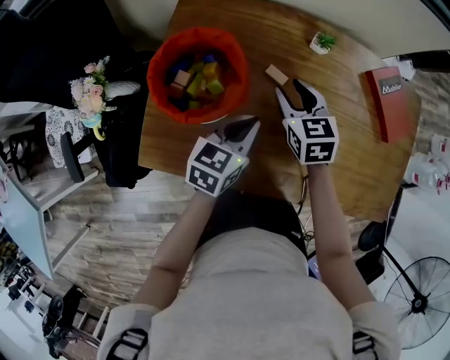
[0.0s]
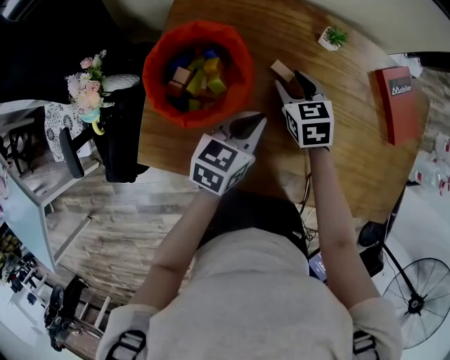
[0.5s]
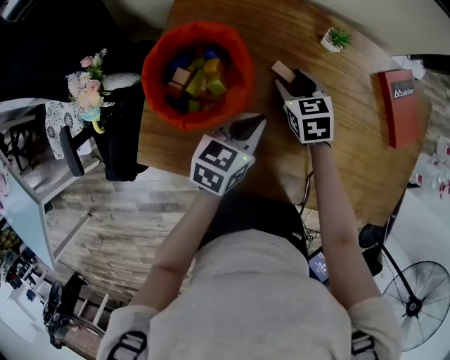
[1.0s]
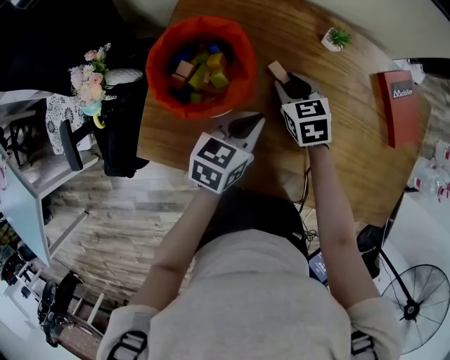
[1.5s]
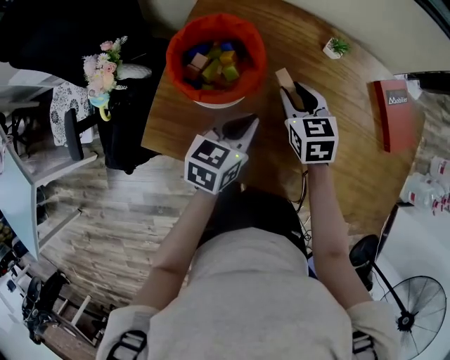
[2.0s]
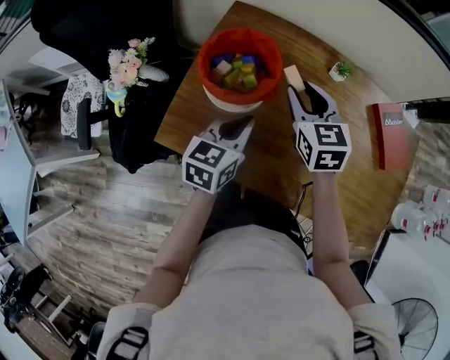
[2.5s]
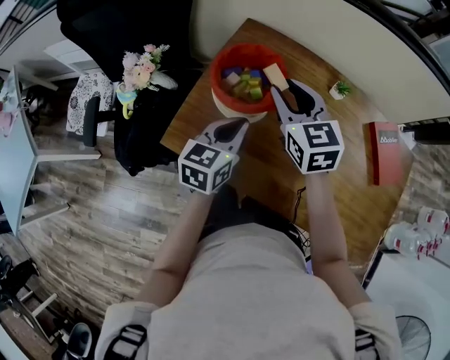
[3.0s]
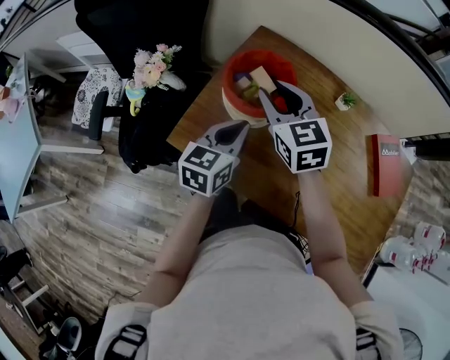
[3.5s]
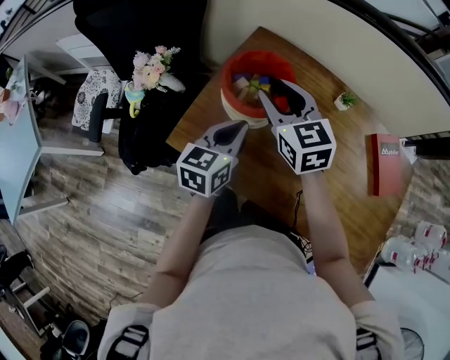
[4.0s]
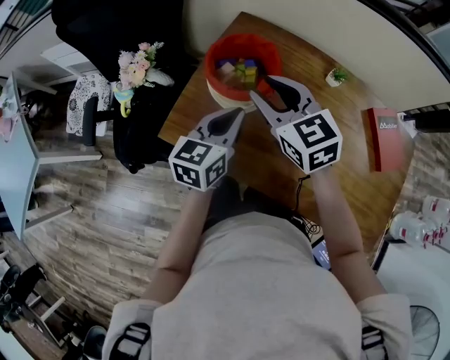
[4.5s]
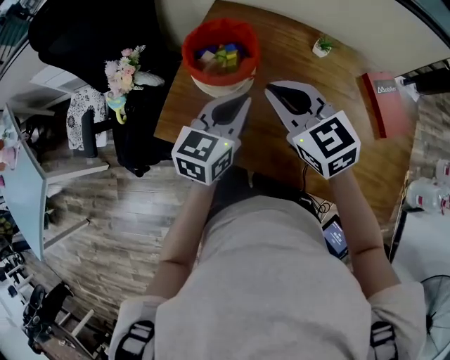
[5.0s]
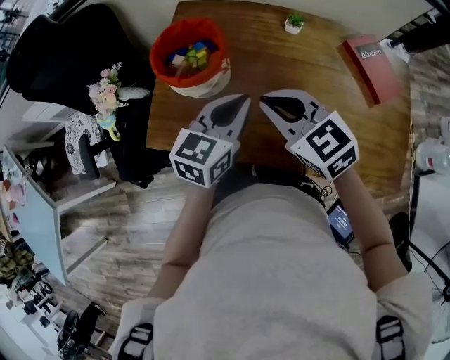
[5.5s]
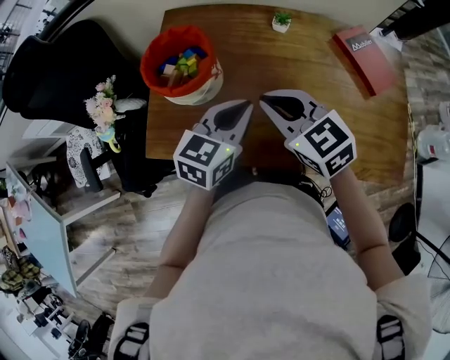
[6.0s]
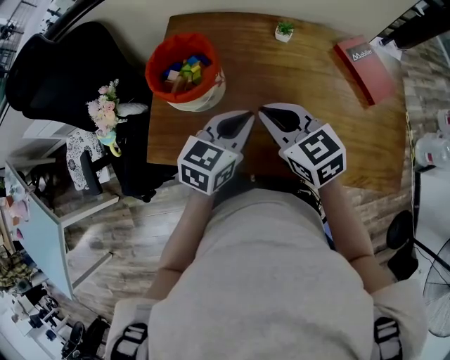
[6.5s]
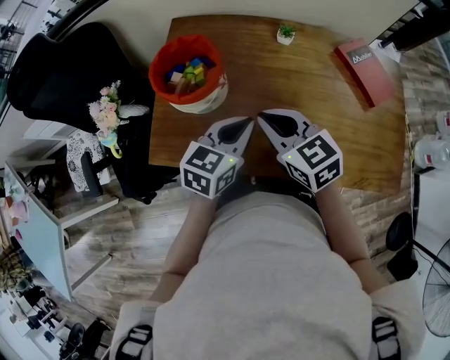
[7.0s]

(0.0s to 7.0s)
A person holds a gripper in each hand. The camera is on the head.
2.0s - 3.5s: The right gripper goes about 20 cm upward and to the left, and swivels approximately 30 degrees; the left gripper heads to the left and upward, covering about 10 cm, and swivels some 20 degrees.
3.5s - 5.0s: The right gripper travels backward and to the right by roughly 10 cm, and closes its fingers; the left gripper goes about 5 cm to the right.
5.0s - 7.0s: The left gripper is displaced to the right by approximately 5 cm; the right gripper shifts some 10 cm downward and to the right.

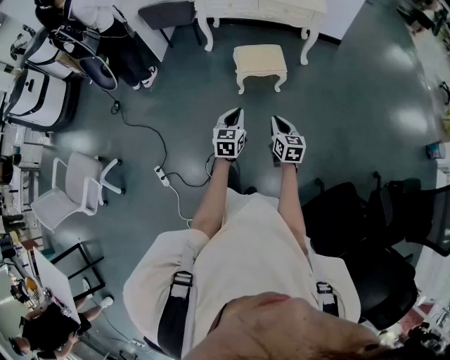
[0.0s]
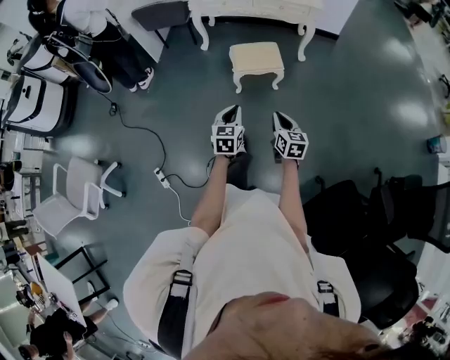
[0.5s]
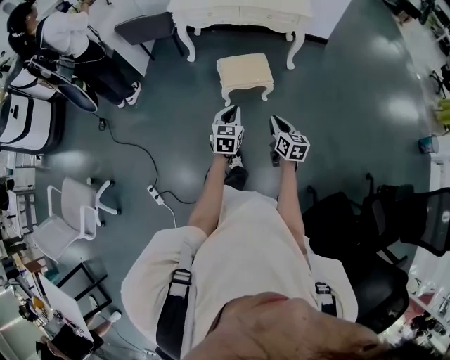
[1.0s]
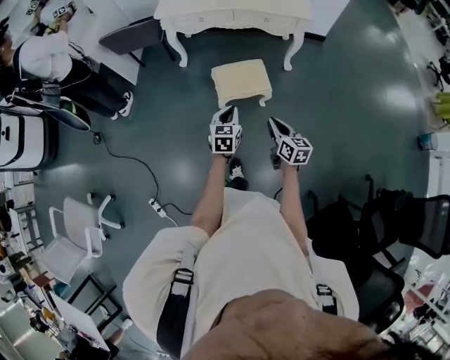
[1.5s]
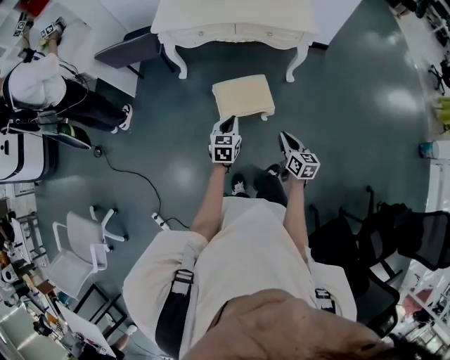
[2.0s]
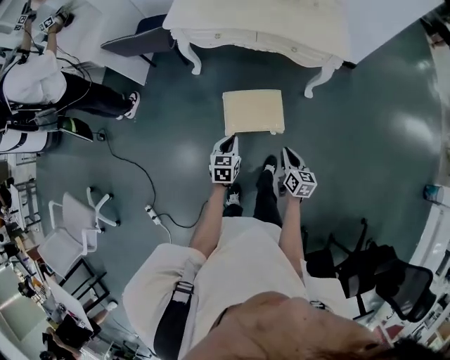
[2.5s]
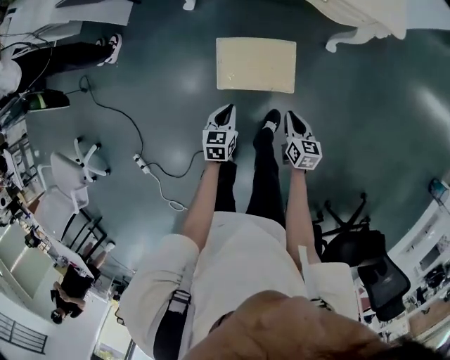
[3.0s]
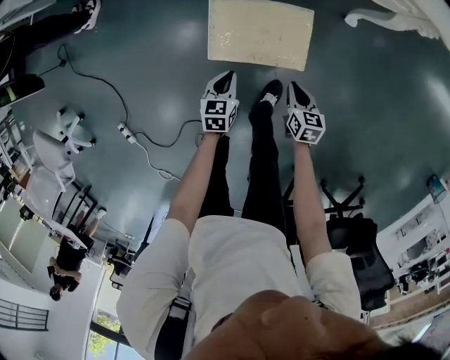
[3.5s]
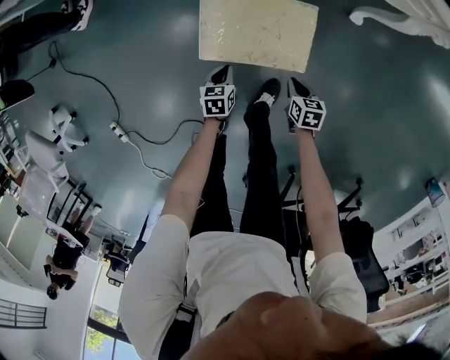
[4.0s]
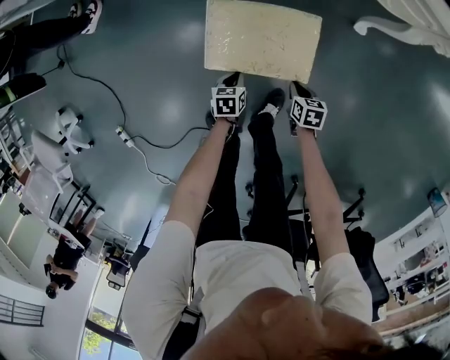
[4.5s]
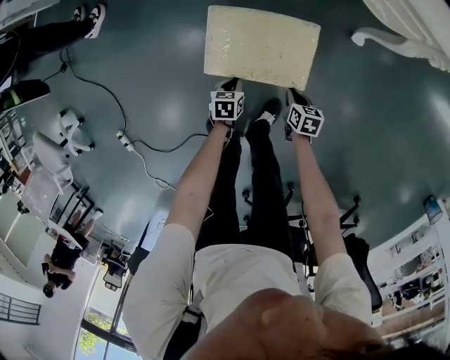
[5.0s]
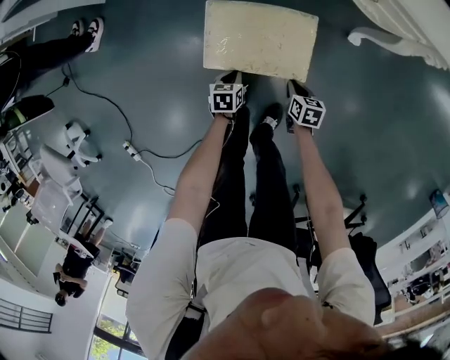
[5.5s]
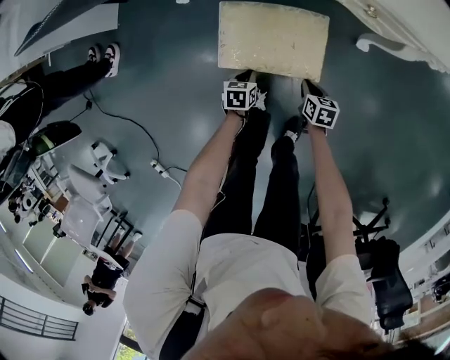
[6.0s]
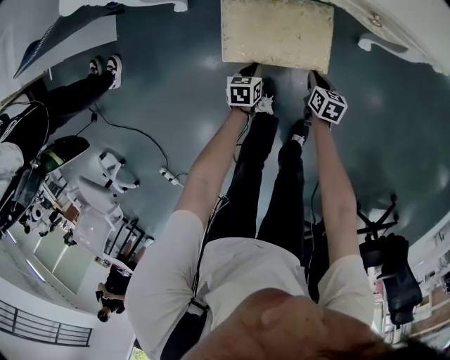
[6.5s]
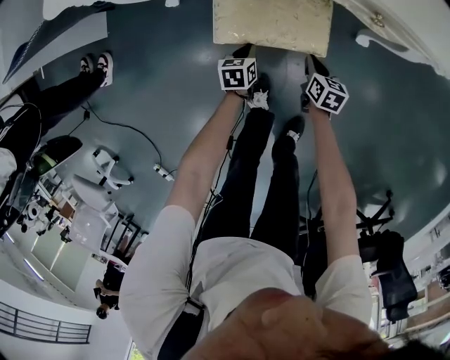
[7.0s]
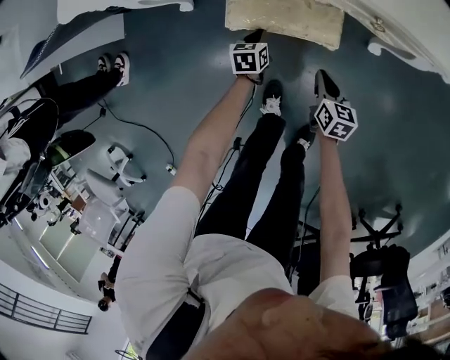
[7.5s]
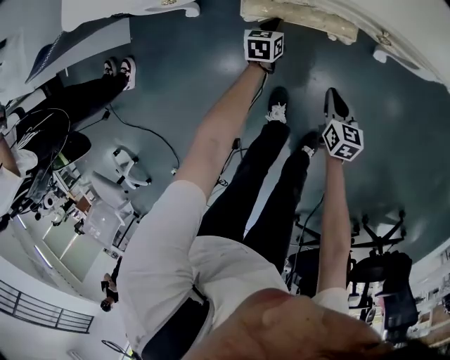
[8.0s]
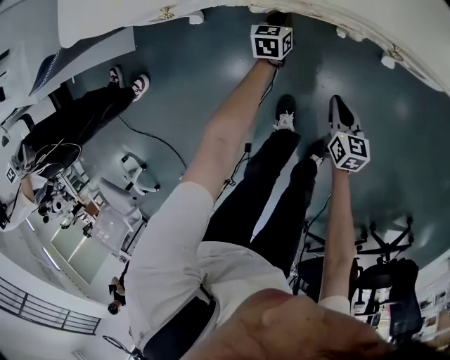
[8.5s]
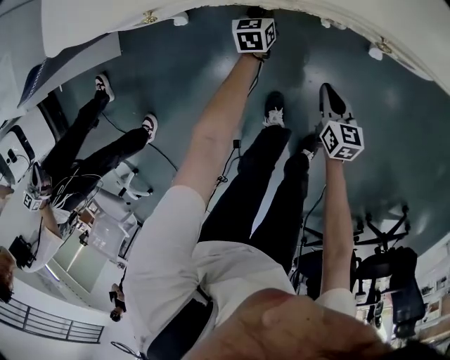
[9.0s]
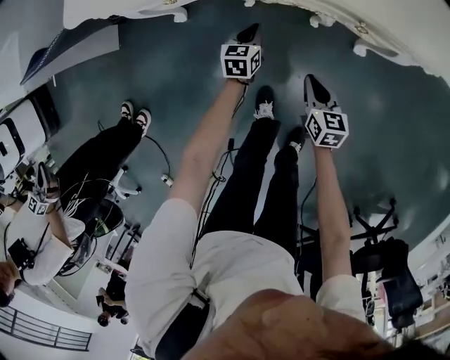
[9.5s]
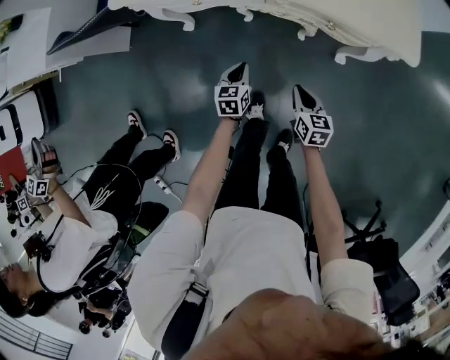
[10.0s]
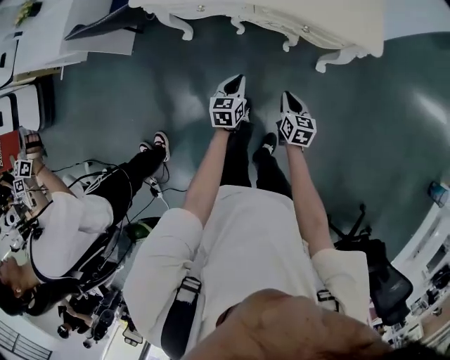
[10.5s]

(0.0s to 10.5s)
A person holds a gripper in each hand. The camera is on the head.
0.0s - 2.0s: The grippers both shift forward by about 40 cm.
2.0s - 4.0s: The right gripper goes roughly 50 cm downward and forward, and points its fingers approximately 30 degrees further downward. The left gripper heads downward, covering approximately 50 cm, and swivels approximately 40 degrees.
4.0s - 6.5s: Both grippers move forward, about 10 cm. The right gripper rotates some 20 degrees.
6.5s - 8.5s: The left gripper moves forward and upward, about 25 cm, and changes its angle by roughly 20 degrees. Meanwhile the right gripper moves upward, some 10 cm.
8.5s - 10.5s: The left gripper is displaced backward by some 25 cm. The right gripper travels to the right by approximately 5 cm, and goes downward and returns, about 10 cm each way.

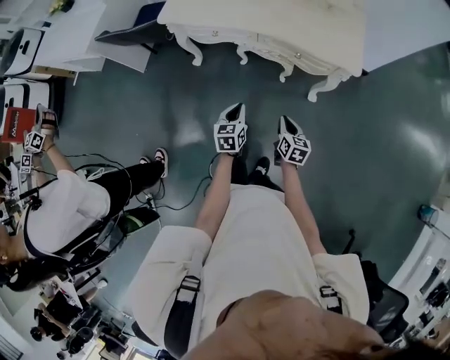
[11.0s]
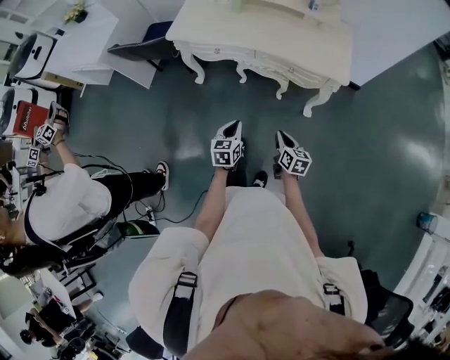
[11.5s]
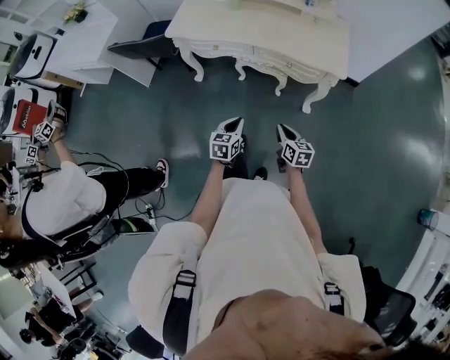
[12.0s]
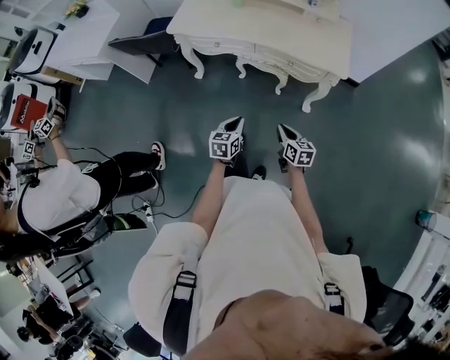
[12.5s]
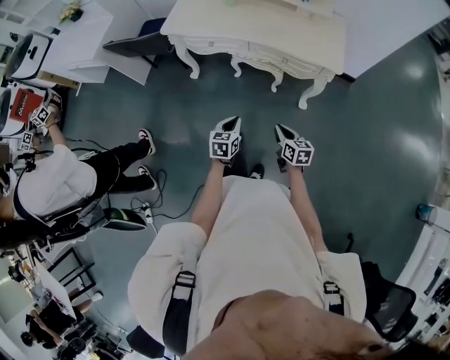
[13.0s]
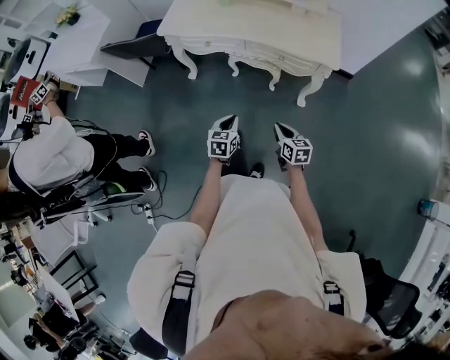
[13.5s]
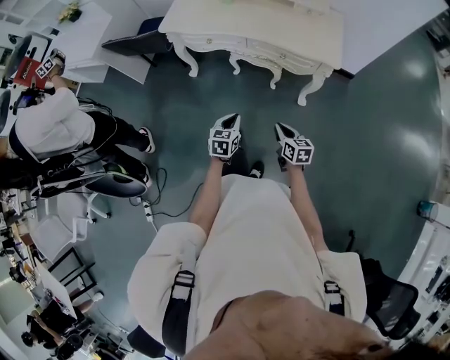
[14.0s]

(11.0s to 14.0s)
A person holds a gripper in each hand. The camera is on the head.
11.0s - 12.5s: Both grippers move backward, some 5 cm.
12.5s - 14.0s: The grippers stay close to where they were, moving slightly.

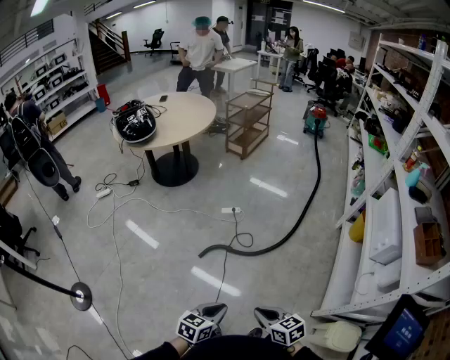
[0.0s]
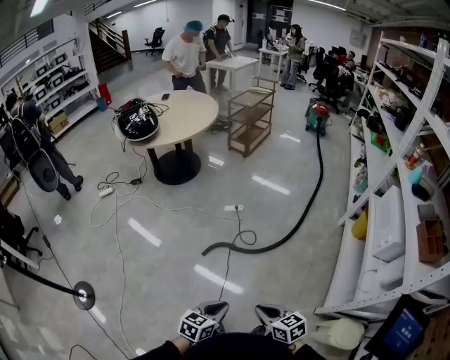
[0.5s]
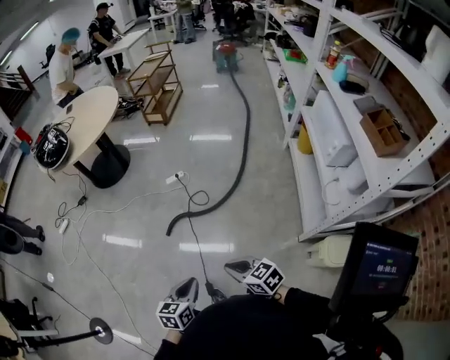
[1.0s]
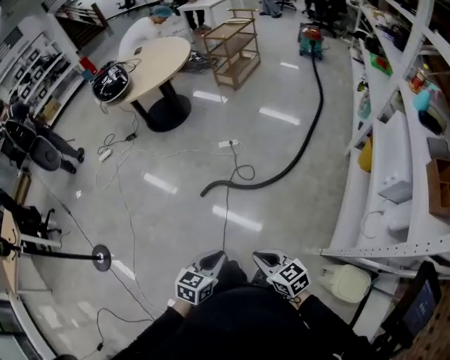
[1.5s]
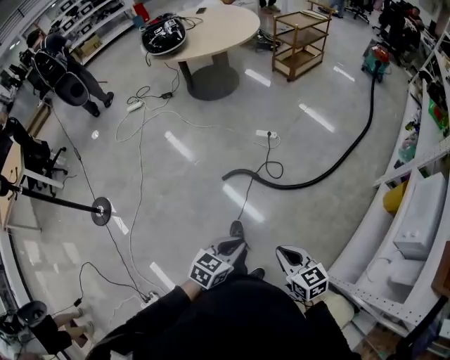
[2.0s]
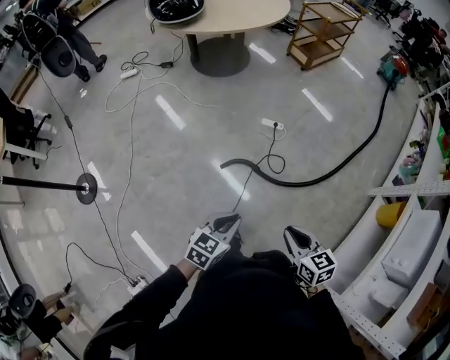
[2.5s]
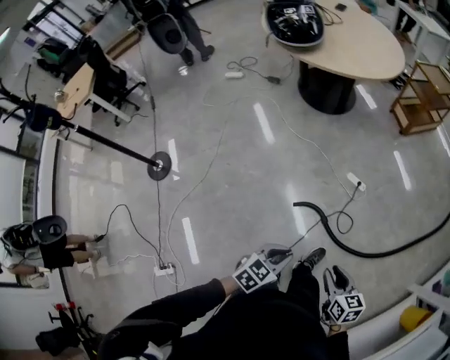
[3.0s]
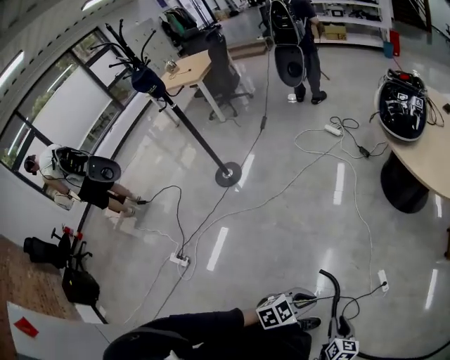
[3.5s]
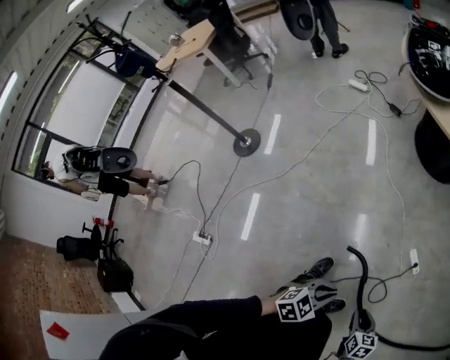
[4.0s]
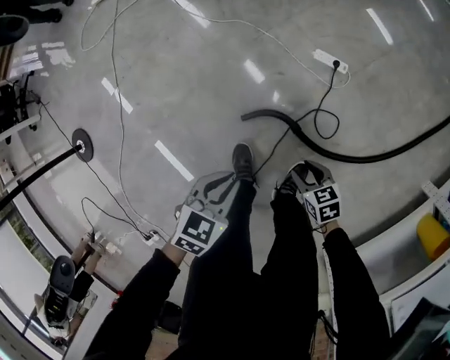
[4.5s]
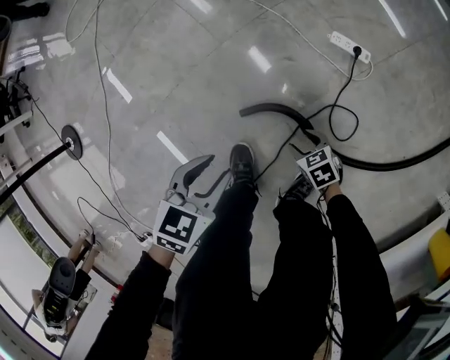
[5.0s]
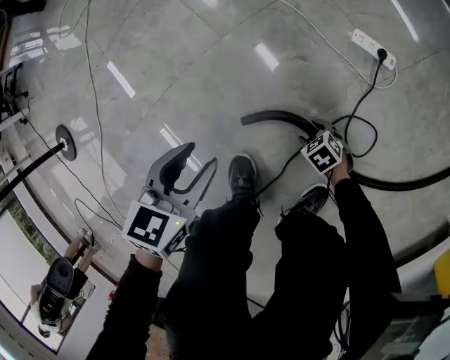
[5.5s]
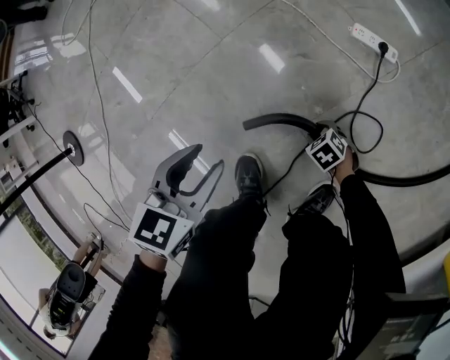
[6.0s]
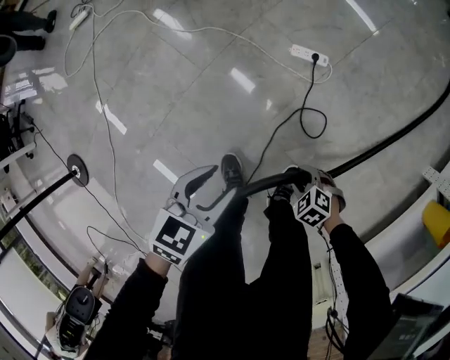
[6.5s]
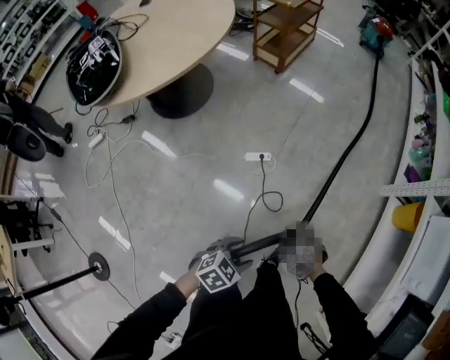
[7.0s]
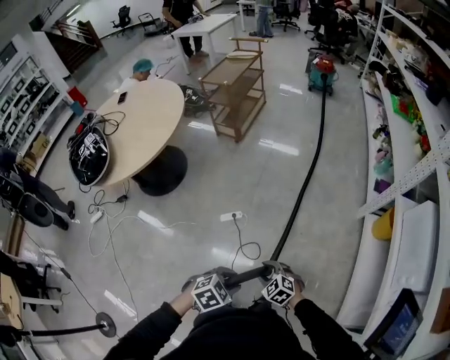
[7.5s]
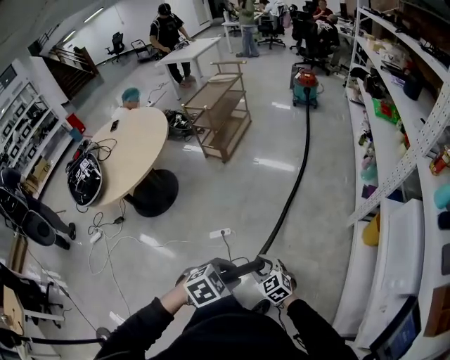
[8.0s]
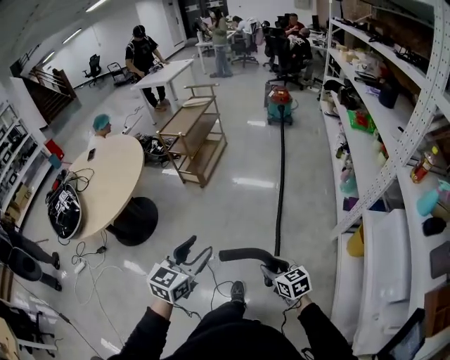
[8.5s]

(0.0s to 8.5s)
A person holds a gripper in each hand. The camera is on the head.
0.0s - 2.0s: The two grippers go roughly 10 cm to the right and forward.
2.0s - 4.0s: The pair of grippers is taken approximately 40 cm. The right gripper swivels approximately 30 degrees. The left gripper rotates roughly 20 degrees.
4.0s - 6.5s: The left gripper shifts some 25 cm downward, and opens; the right gripper is displaced downward by about 40 cm, and changes its angle by about 40 degrees.
6.5s - 8.5s: The two grippers travel together, some 40 cm. The grippers both shift upward by some 60 cm. The right gripper points its fingers roughly 40 degrees further upward, while the left gripper tilts its fingers about 30 degrees upward.
